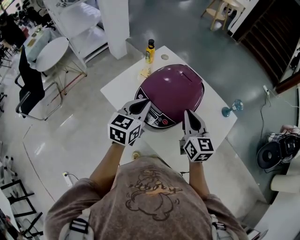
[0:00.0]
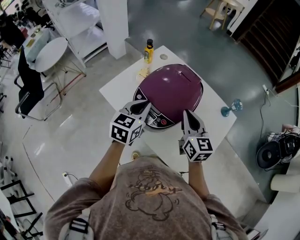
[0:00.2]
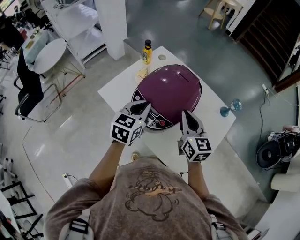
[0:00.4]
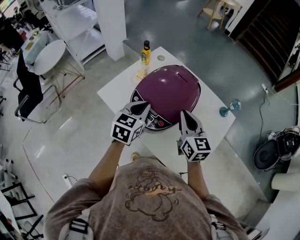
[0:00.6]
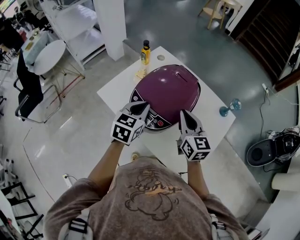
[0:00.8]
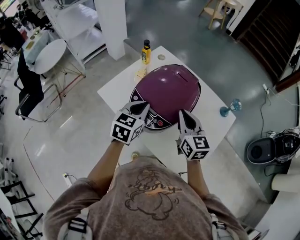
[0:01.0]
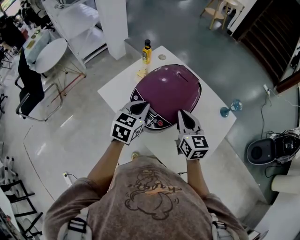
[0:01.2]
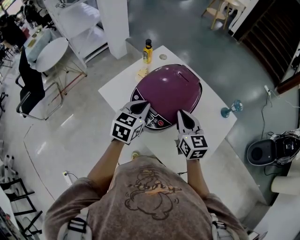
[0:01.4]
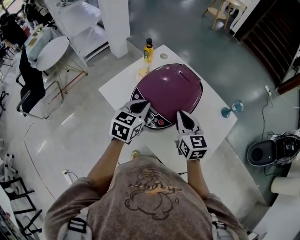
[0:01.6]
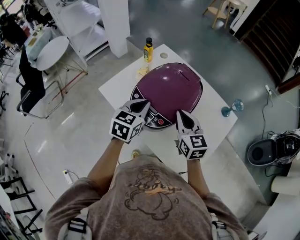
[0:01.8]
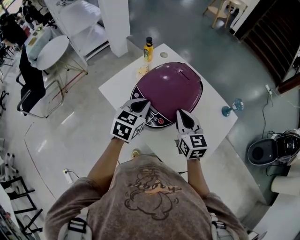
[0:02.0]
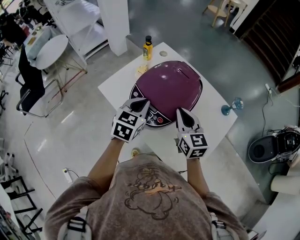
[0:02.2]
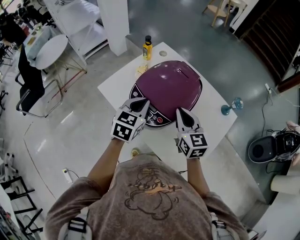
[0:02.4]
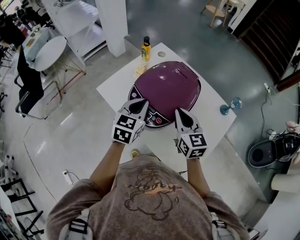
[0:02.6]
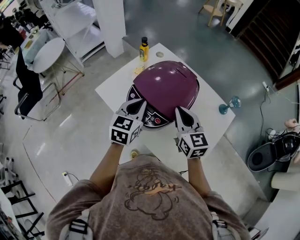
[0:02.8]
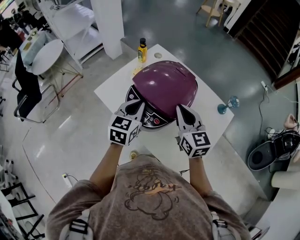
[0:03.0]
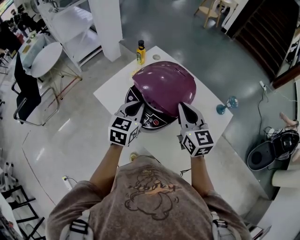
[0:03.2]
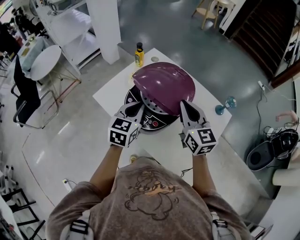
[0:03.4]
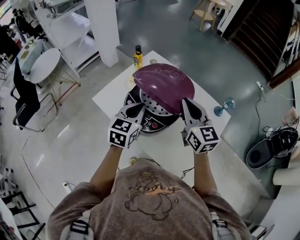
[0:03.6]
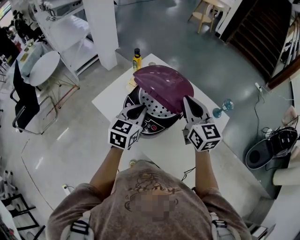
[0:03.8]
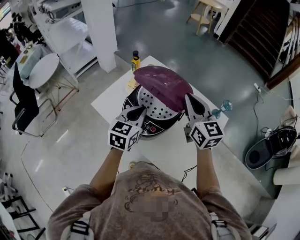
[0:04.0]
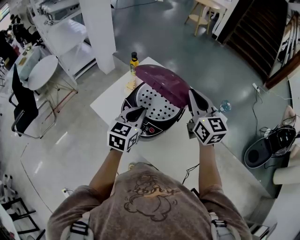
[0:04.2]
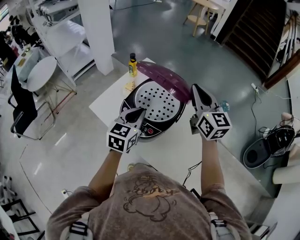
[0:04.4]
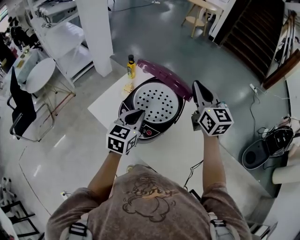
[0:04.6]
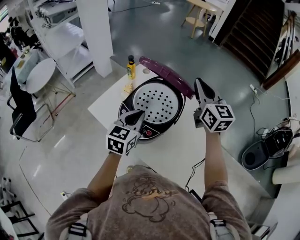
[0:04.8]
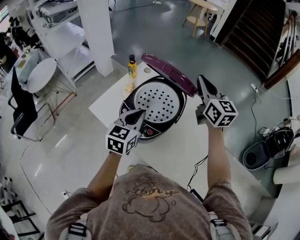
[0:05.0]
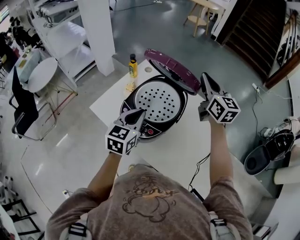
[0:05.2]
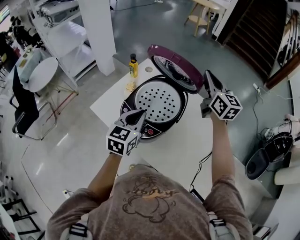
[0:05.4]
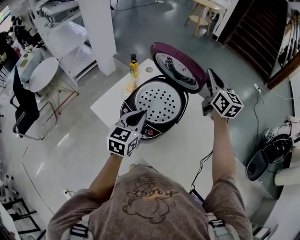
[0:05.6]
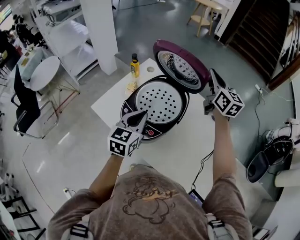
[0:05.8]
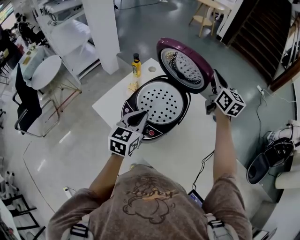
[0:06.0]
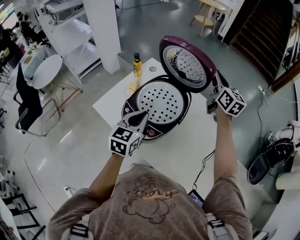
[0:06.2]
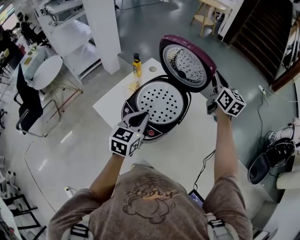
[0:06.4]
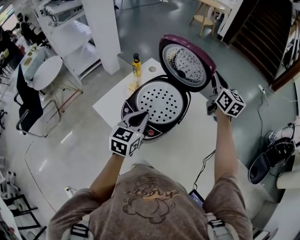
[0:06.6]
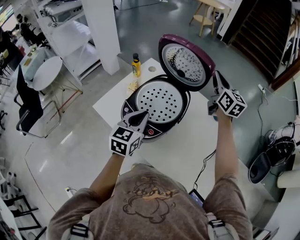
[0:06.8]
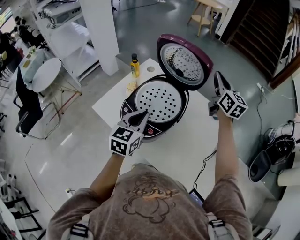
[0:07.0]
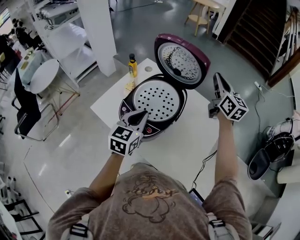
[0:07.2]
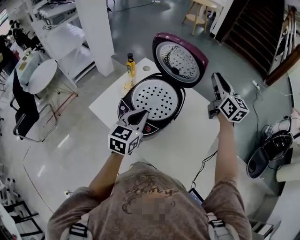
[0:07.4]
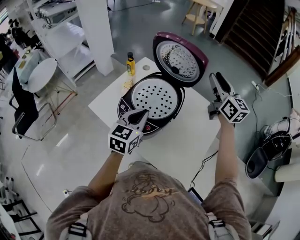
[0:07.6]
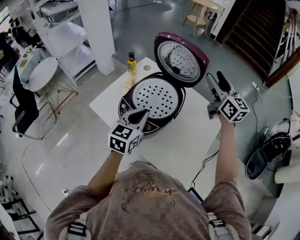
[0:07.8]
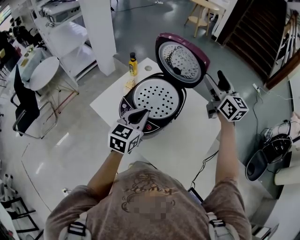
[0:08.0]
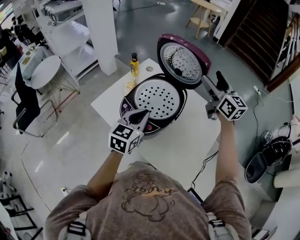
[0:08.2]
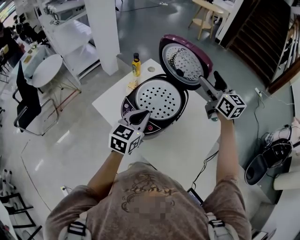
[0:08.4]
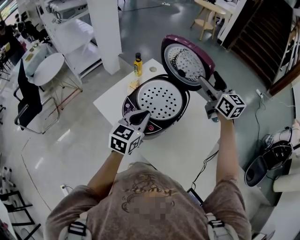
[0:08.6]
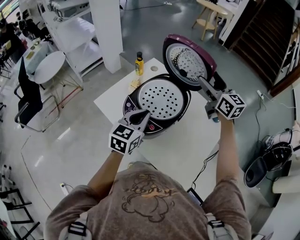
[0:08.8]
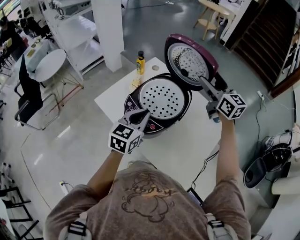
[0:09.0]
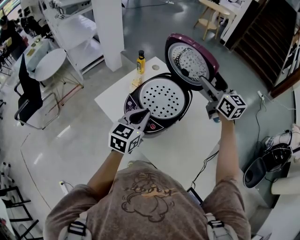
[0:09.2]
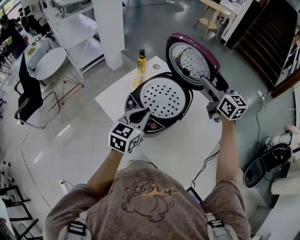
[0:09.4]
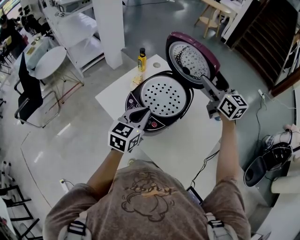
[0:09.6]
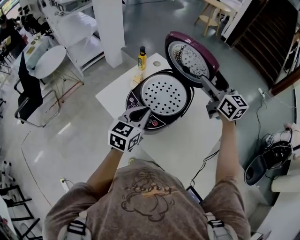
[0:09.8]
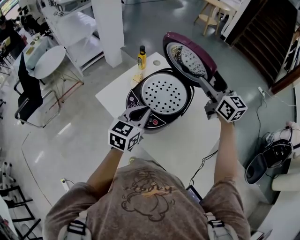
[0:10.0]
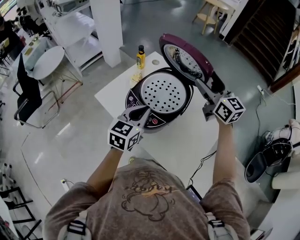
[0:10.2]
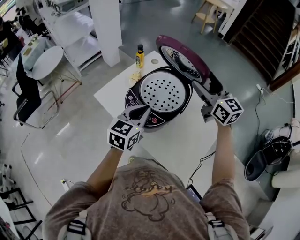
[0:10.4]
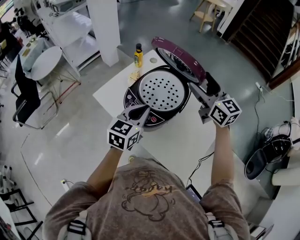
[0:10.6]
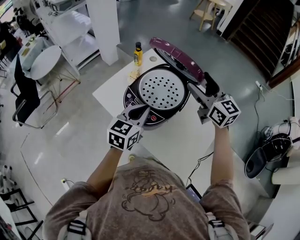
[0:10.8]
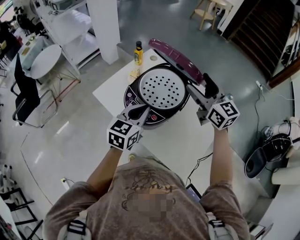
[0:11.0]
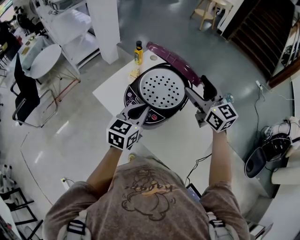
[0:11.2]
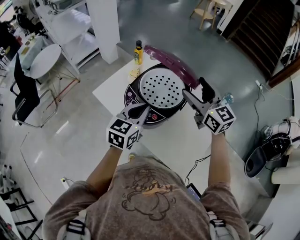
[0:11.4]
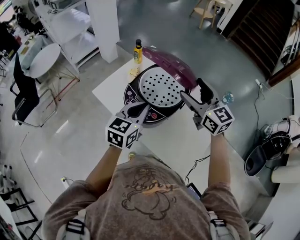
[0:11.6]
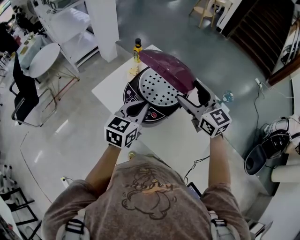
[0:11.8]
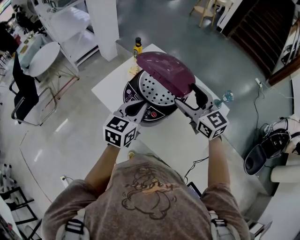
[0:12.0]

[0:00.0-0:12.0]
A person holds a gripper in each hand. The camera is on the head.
0:00.0 to 0:03.0: The grippers stay close to where they were, moving slightly.
0:03.0 to 0:04.4: The right gripper travels upward, forward and to the right by some 15 cm.
0:04.4 to 0:06.0: The right gripper heads forward and to the right, covering approximately 15 cm.
0:06.0 to 0:07.6: The right gripper travels backward by roughly 5 cm, and opens up.
0:07.6 to 0:09.0: The right gripper moves to the left, some 5 cm, and opens its fingers.
0:09.0 to 0:10.4: The right gripper heads backward, covering approximately 5 cm.
0:10.4 to 0:12.0: The right gripper is displaced backward, downward and to the left by roughly 10 cm.

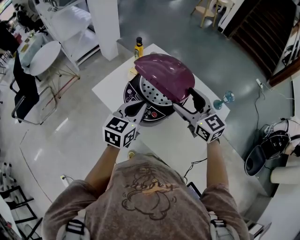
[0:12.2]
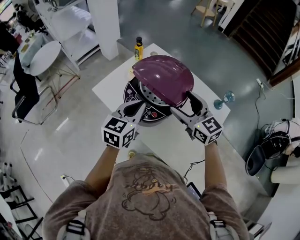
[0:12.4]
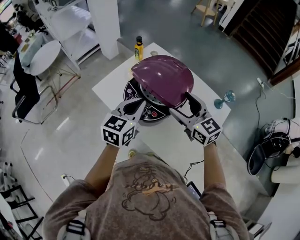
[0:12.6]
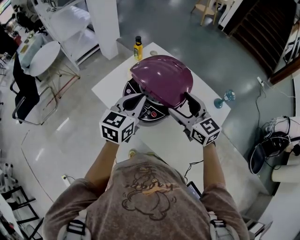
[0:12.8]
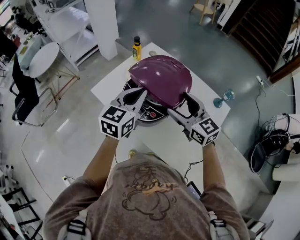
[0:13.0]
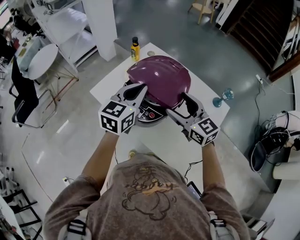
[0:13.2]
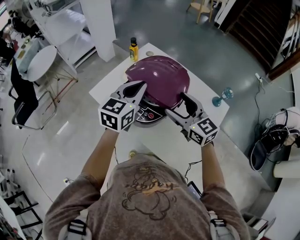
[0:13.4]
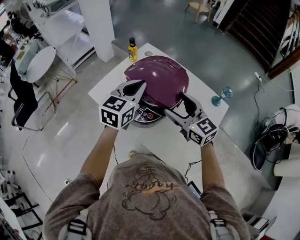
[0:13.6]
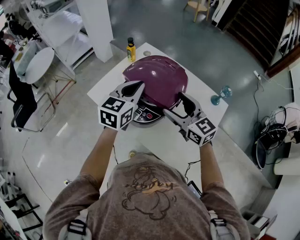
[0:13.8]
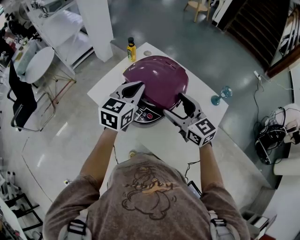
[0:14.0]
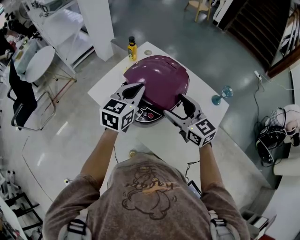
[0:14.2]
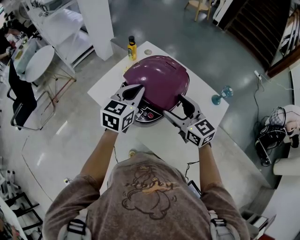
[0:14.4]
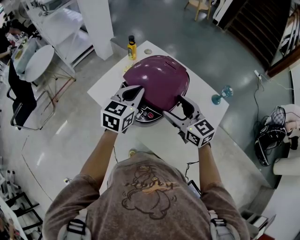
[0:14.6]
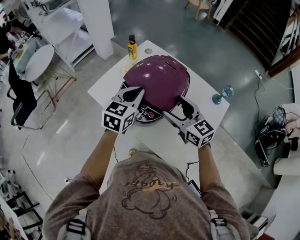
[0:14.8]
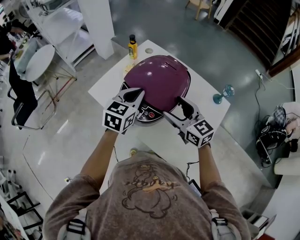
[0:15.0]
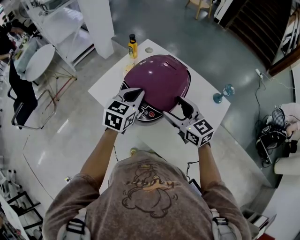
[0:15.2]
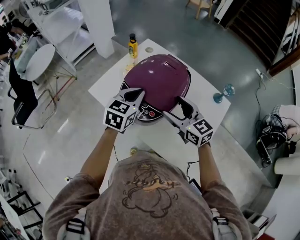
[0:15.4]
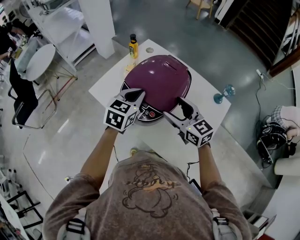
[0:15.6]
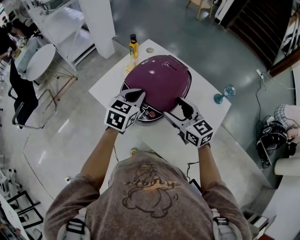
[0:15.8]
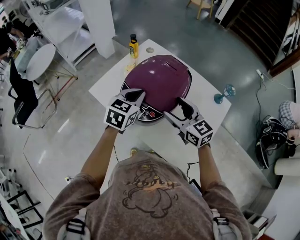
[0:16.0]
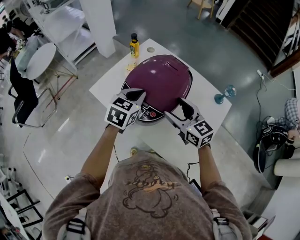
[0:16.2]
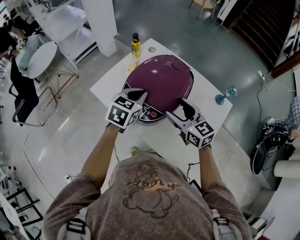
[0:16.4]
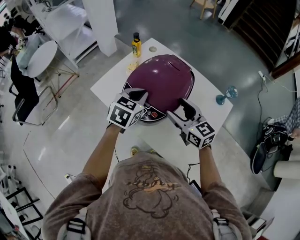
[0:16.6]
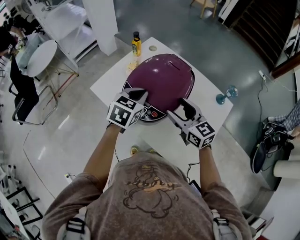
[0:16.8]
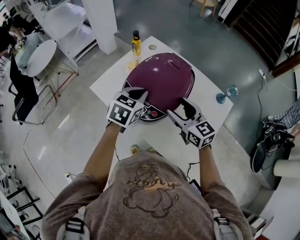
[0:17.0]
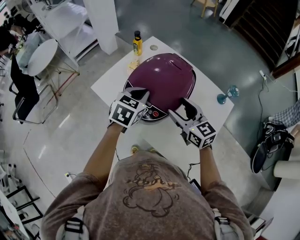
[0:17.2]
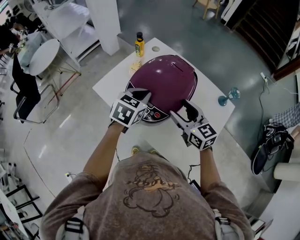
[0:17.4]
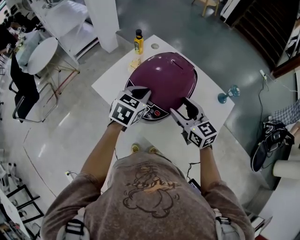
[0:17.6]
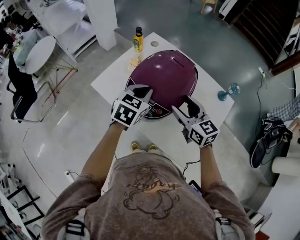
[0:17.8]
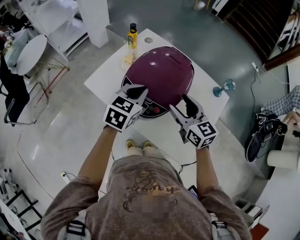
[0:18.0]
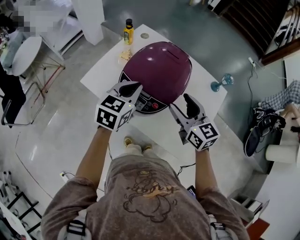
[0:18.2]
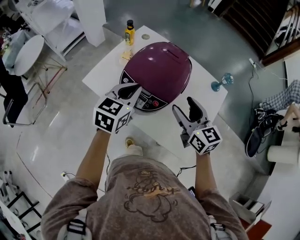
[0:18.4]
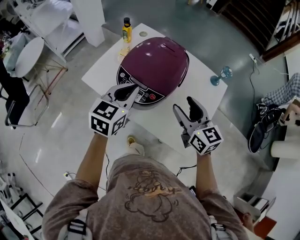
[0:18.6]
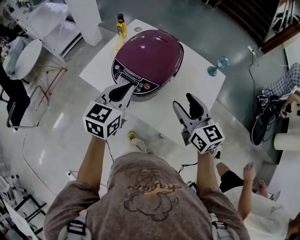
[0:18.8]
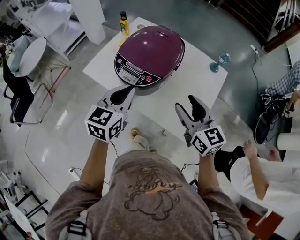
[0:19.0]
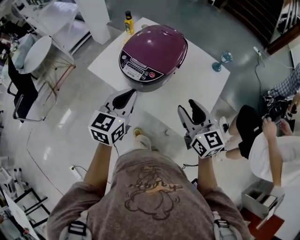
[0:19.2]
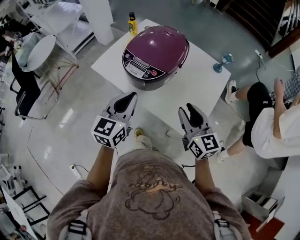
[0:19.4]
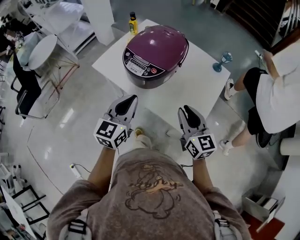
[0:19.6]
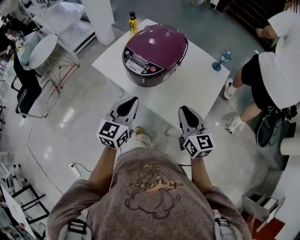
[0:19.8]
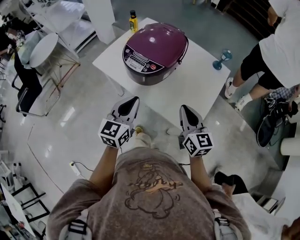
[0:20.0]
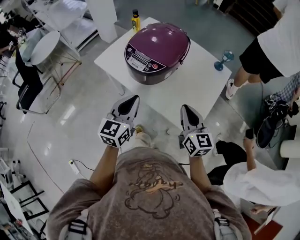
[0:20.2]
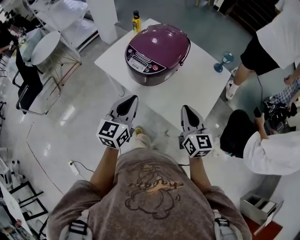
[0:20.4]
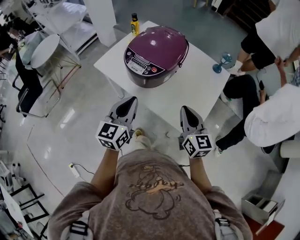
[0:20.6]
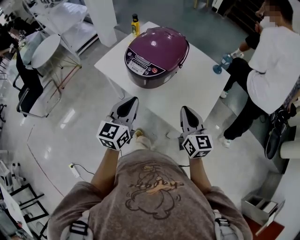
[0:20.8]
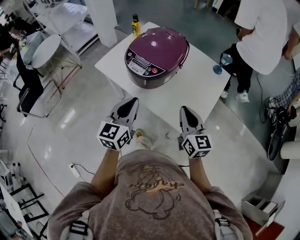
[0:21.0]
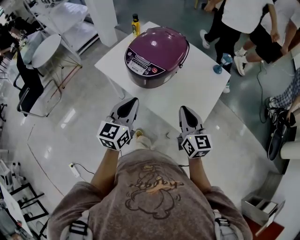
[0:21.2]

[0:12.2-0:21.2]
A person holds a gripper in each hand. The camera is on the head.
0:12.2 to 0:13.8: The left gripper moves forward, approximately 5 cm.
0:13.8 to 0:15.2: The left gripper is displaced downward by roughly 5 cm.
0:15.2 to 0:18.2: The grippers stay close to where they were, moving slightly.
0:18.2 to 0:19.8: Both grippers travel together backward, roughly 20 cm. The right gripper closes its fingers.
0:19.8 to 0:21.2: The grippers stay close to where they were, moving slightly.

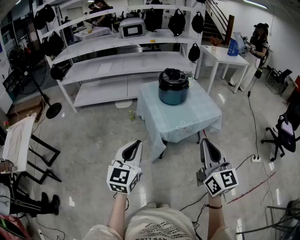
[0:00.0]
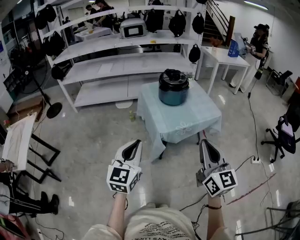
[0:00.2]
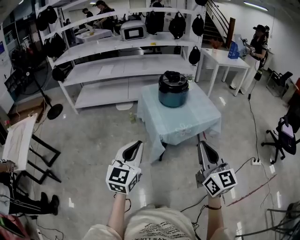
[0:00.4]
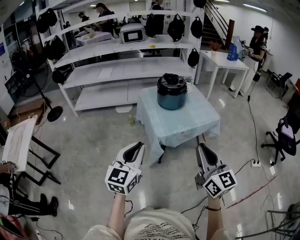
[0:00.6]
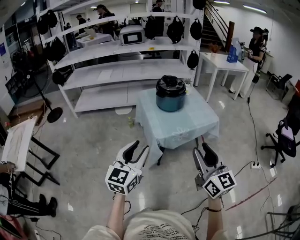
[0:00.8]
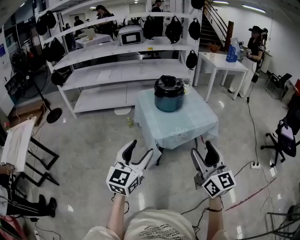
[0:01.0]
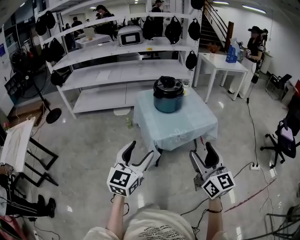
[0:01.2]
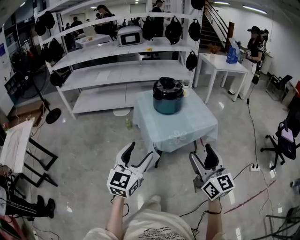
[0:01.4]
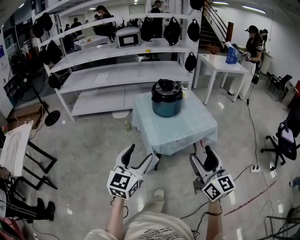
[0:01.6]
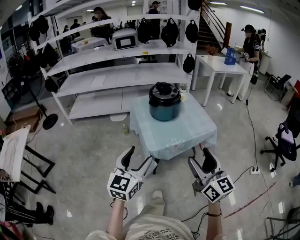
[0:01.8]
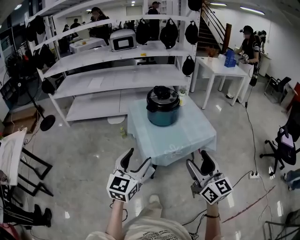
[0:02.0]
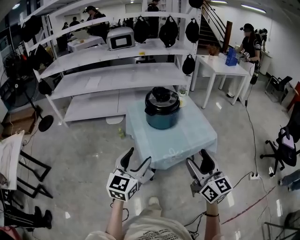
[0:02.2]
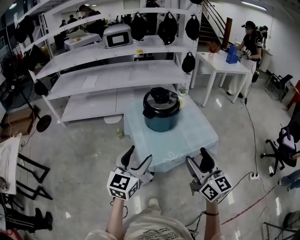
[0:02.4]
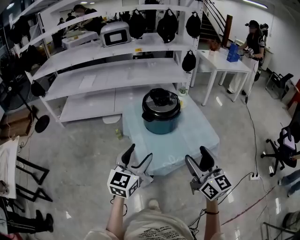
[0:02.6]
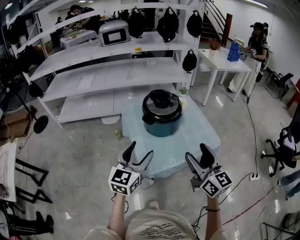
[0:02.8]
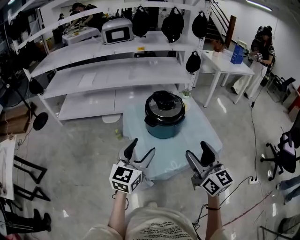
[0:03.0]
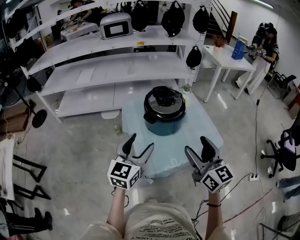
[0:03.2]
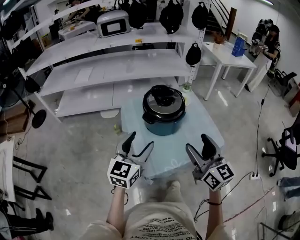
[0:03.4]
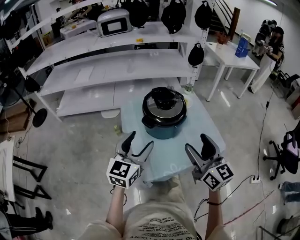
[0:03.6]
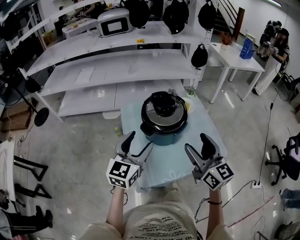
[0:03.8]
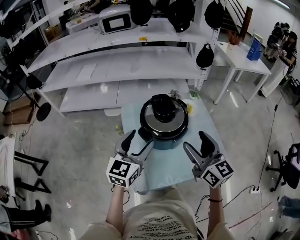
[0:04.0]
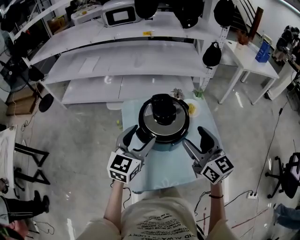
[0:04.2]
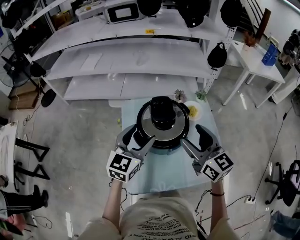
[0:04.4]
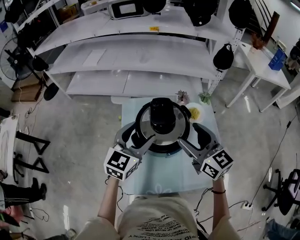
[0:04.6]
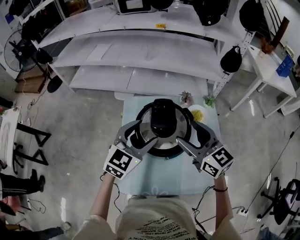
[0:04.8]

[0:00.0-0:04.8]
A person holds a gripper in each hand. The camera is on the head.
0:00.0 to 0:01.6: The grippers both shift to the right by some 5 cm. The right gripper opens; the left gripper opens up.
0:01.6 to 0:03.2: Both grippers move forward, about 30 cm.
0:03.2 to 0:04.8: The right gripper shifts some 30 cm forward, and swivels about 30 degrees; the left gripper travels forward and to the right by some 25 cm.
